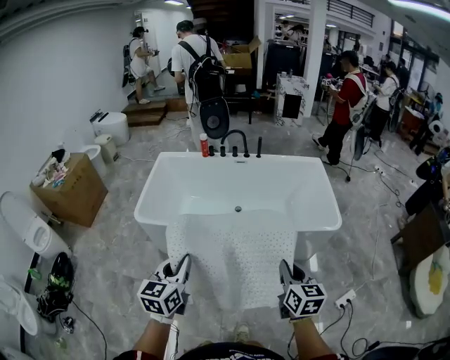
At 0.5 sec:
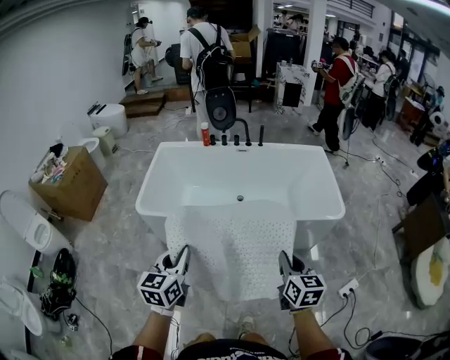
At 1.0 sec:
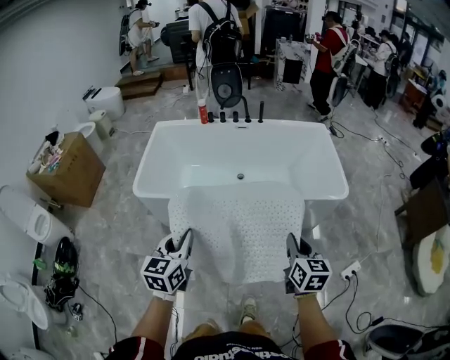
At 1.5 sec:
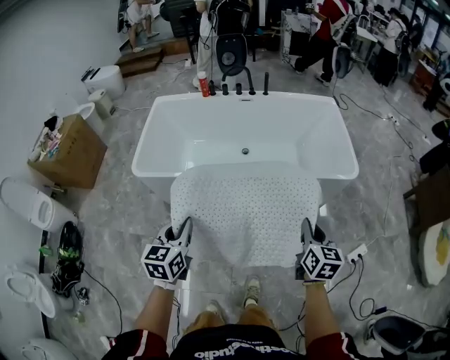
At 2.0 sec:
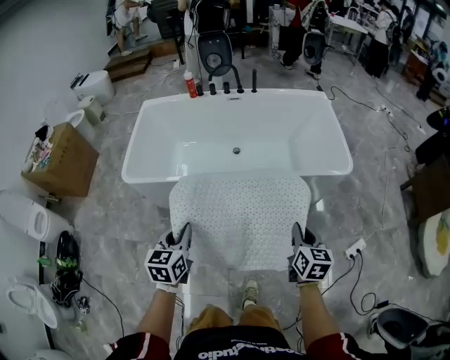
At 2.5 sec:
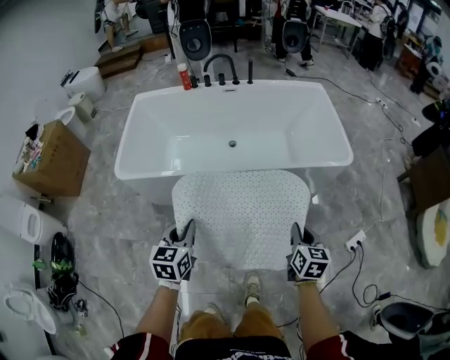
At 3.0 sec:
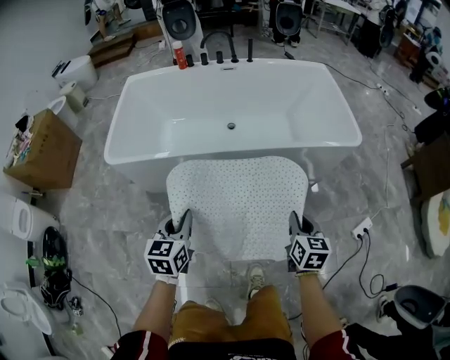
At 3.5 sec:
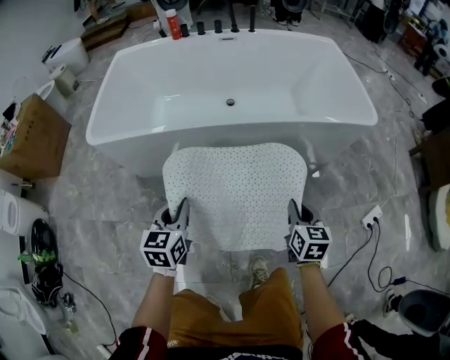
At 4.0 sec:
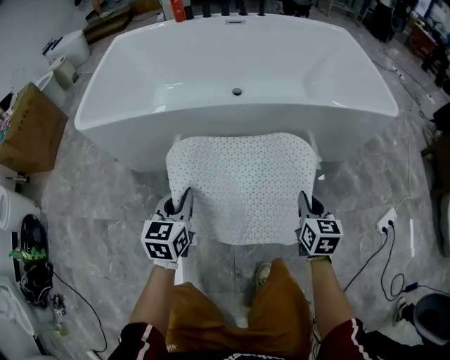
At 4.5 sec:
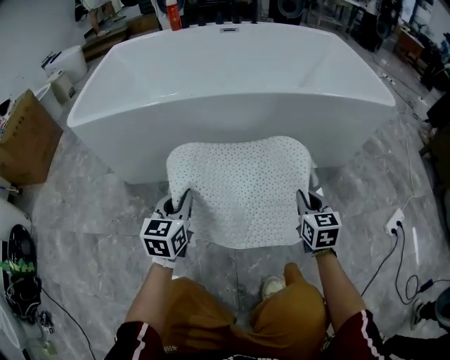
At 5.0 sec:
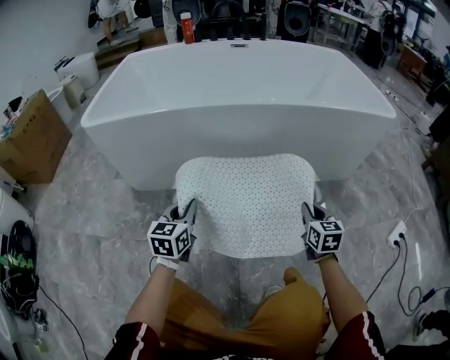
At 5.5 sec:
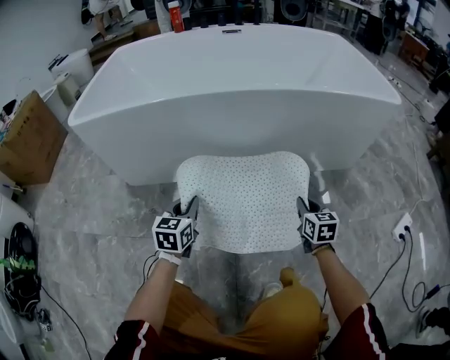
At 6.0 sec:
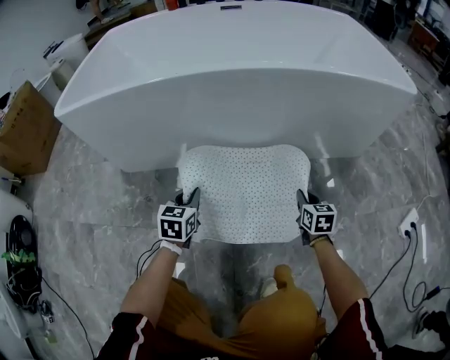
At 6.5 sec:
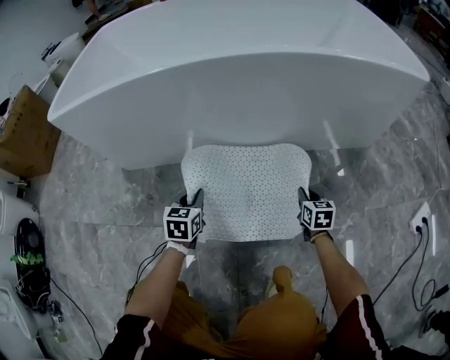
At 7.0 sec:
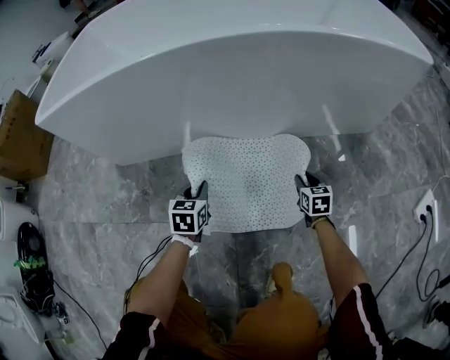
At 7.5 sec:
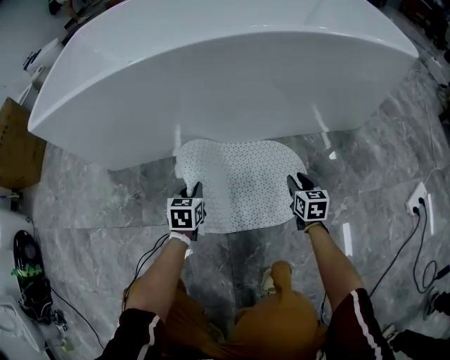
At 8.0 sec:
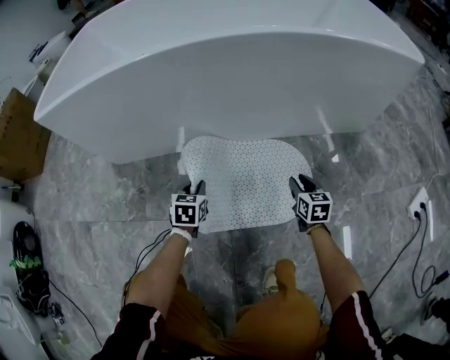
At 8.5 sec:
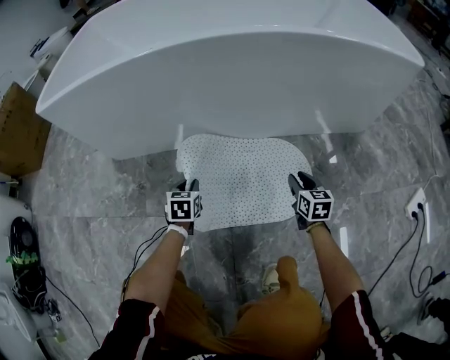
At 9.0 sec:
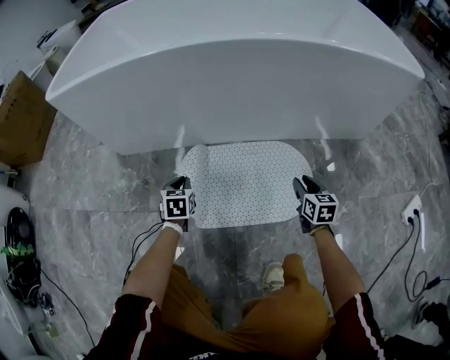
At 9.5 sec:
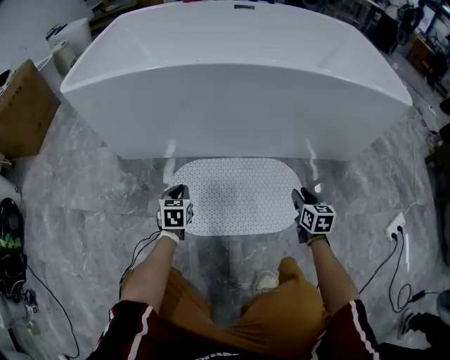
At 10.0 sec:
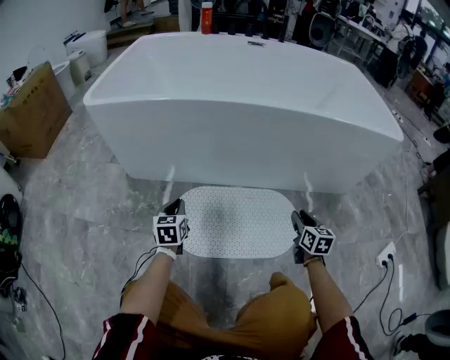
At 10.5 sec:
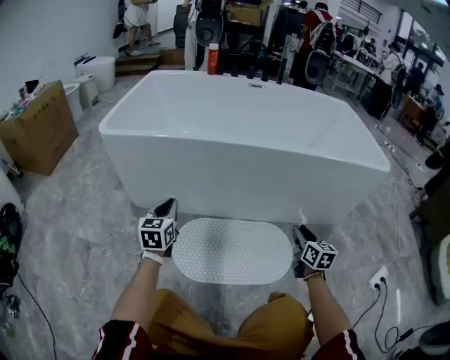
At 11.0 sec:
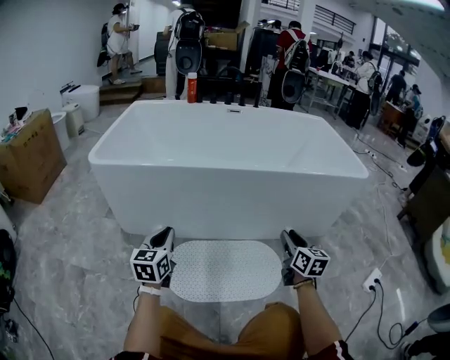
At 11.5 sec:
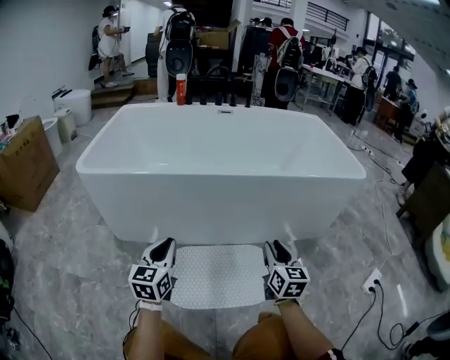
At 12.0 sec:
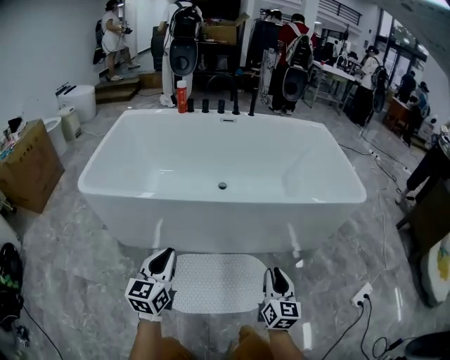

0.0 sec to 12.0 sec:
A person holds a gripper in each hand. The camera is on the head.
0.0 sec to 2.0 sec: Both grippers move downward, about 15 cm.
2.0 sec to 4.0 sec: Both grippers travel together downward, approximately 40 cm.
4.0 sec to 6.0 sec: Both grippers move downward, roughly 25 cm.
6.0 sec to 8.0 sec: The two grippers go approximately 10 cm downward. The right gripper opens.
8.0 sec to 10.0 sec: The left gripper shifts approximately 20 cm to the left and upward, and turns by about 20 degrees. The right gripper is displaced upward by about 15 cm.
10.0 sec to 12.0 sec: Both grippers travel together upward, some 30 cm. The right gripper swivels approximately 20 degrees. Meanwhile the left gripper turns by some 30 degrees.

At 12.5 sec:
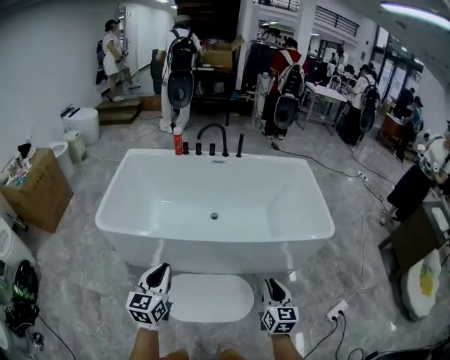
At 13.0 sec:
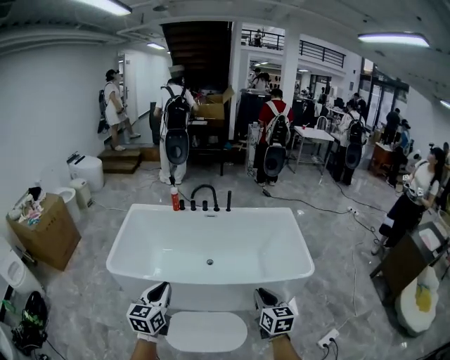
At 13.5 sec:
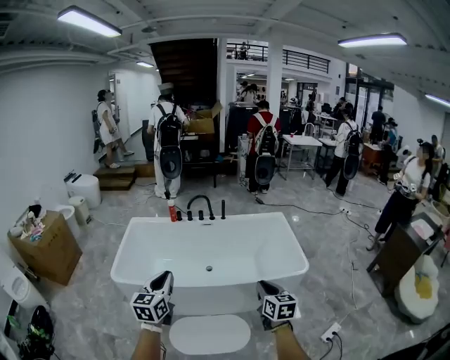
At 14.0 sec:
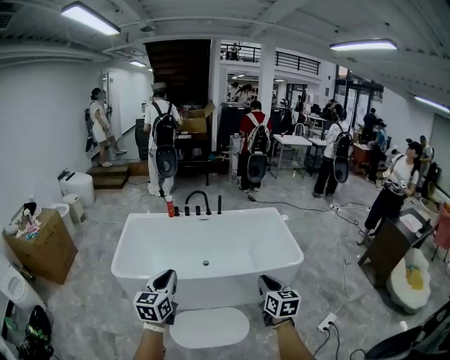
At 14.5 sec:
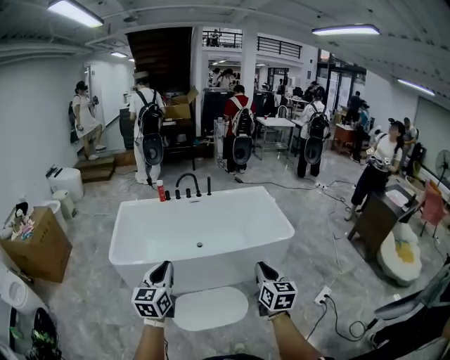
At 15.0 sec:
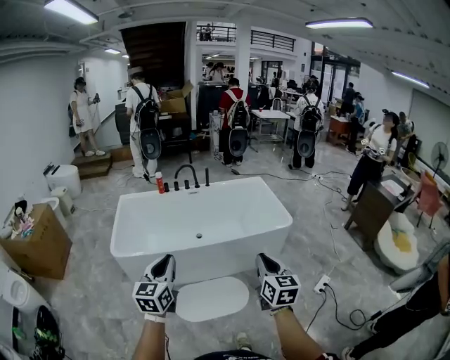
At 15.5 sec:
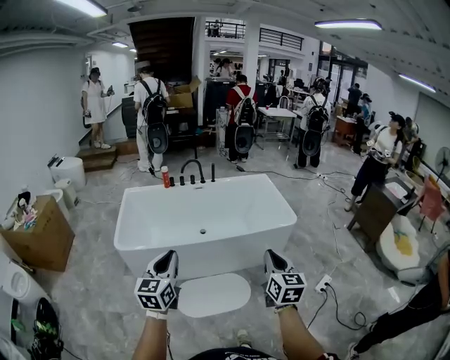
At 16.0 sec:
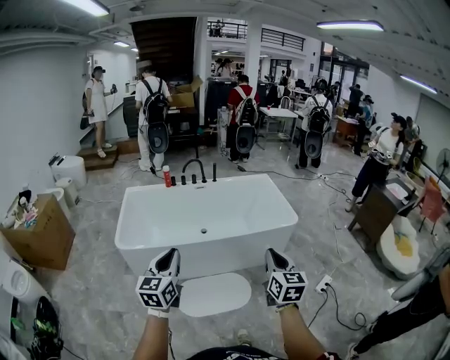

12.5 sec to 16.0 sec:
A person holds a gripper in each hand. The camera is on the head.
12.5 sec to 14.5 sec: The two grippers go about 35 cm upward and backward.
14.5 sec to 16.0 sec: The left gripper ends up about 5 cm from where it was. Meanwhile the right gripper moves backward, roughly 5 cm.

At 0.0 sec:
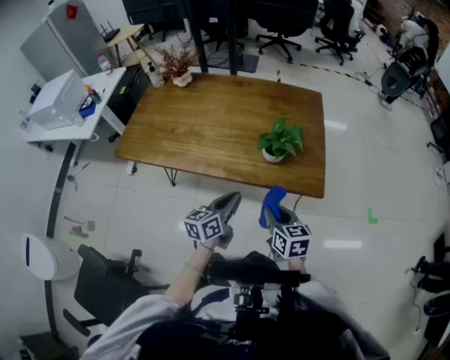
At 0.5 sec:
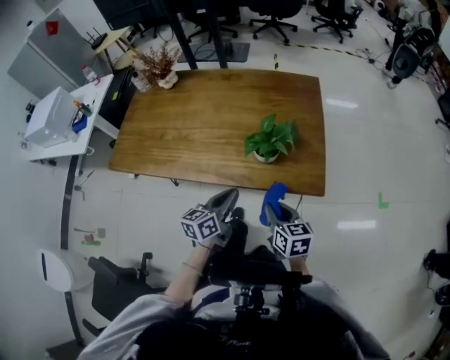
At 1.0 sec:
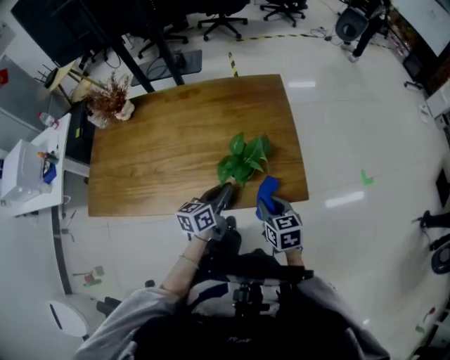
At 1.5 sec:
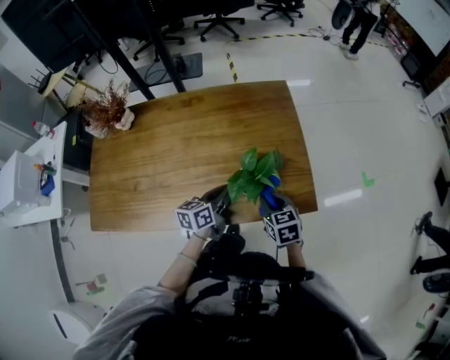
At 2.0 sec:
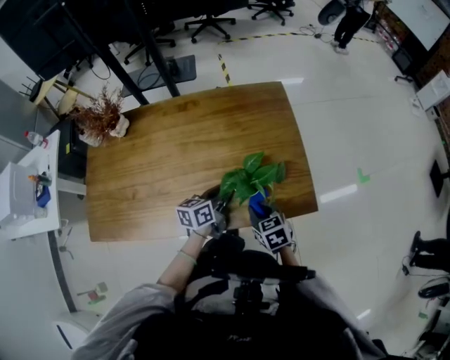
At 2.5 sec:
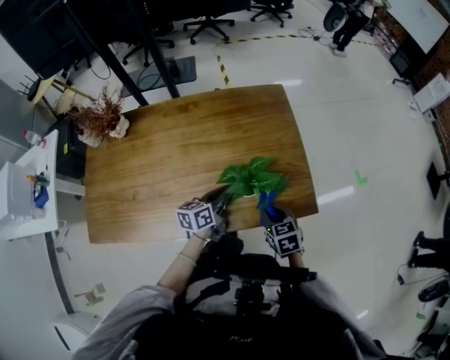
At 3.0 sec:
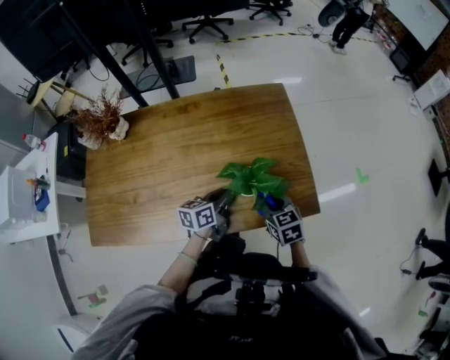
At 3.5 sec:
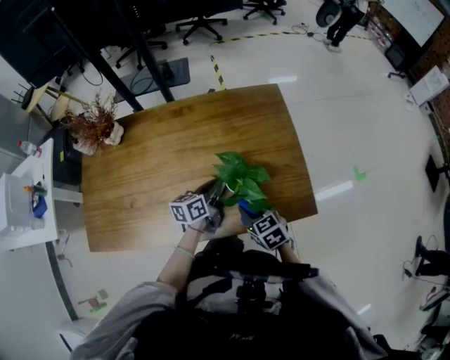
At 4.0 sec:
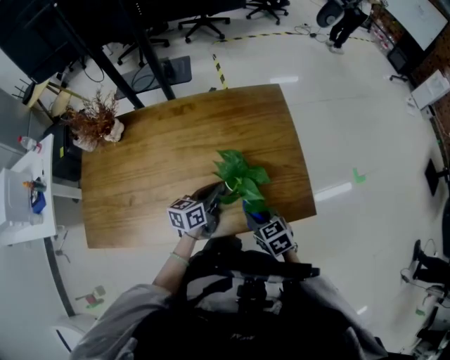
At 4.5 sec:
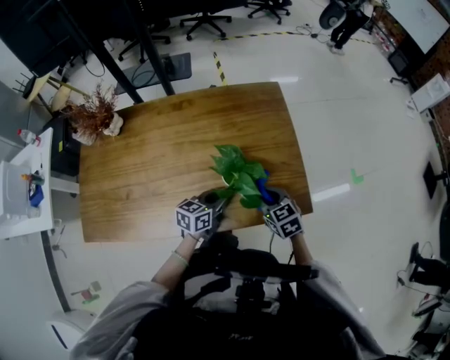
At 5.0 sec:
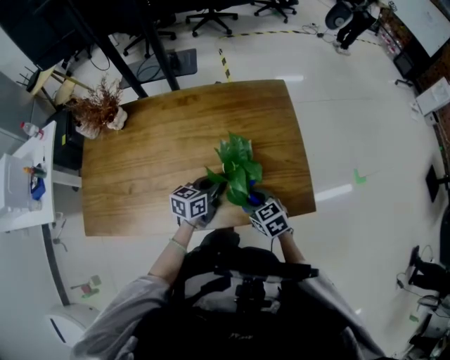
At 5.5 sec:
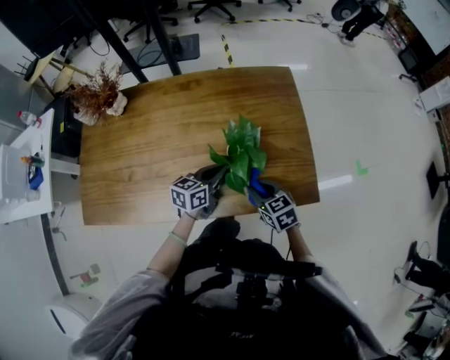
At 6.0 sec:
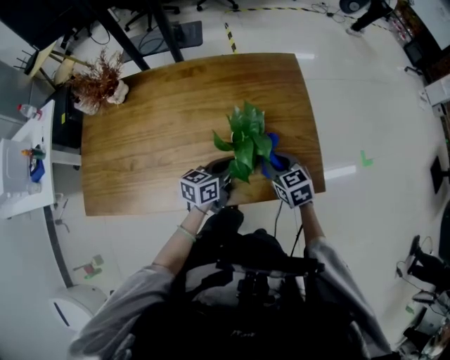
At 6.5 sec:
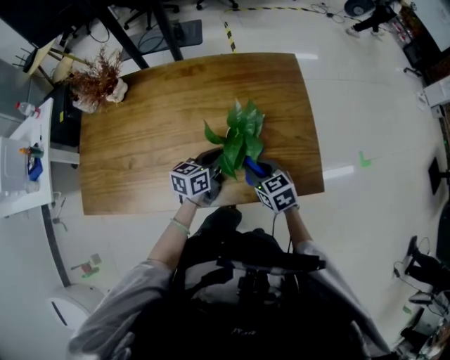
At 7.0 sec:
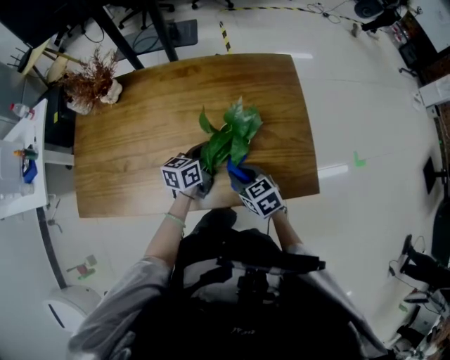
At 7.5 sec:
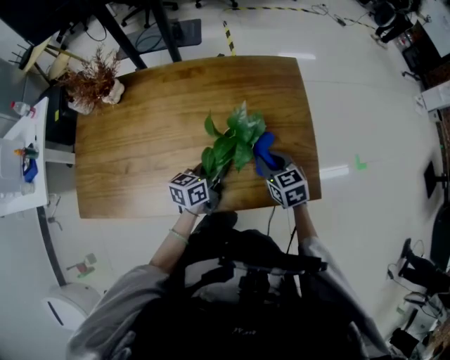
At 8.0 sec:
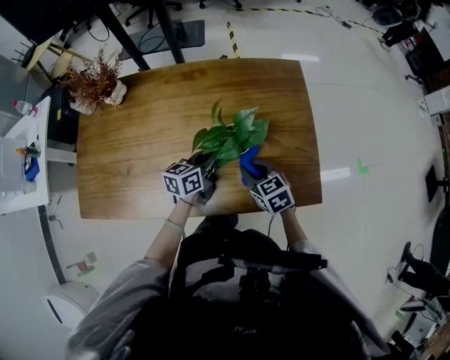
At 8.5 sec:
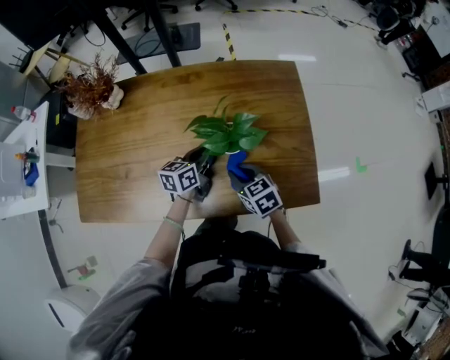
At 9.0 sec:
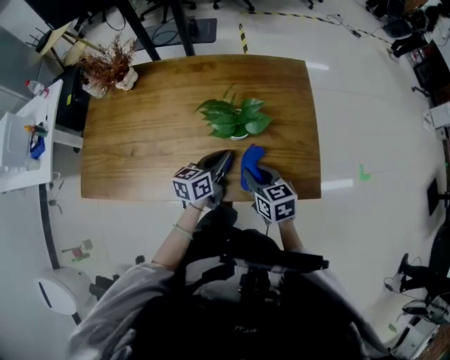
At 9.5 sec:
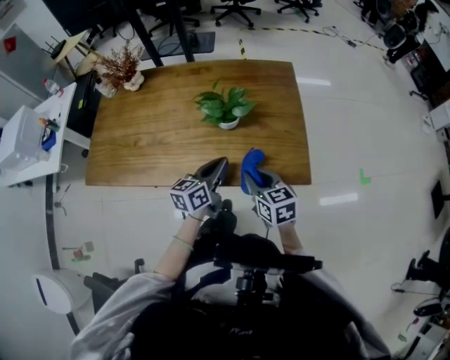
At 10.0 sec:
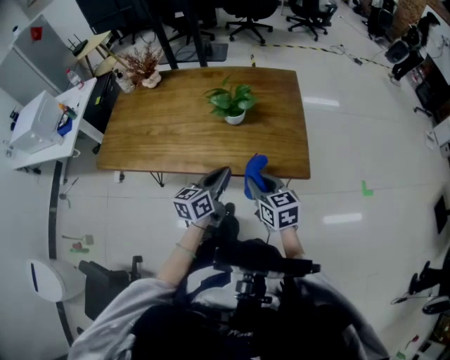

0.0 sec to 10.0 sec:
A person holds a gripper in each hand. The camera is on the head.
0.0 sec to 2.0 sec: Both grippers move forward, some 20 cm. The left gripper rotates approximately 20 degrees.
2.0 sec to 4.0 sec: The right gripper goes to the right and returns, roughly 5 cm each way.
4.0 sec to 6.0 sec: The right gripper moves forward, approximately 10 cm.
6.0 sec to 8.0 sec: The right gripper moves left and right over some 10 cm, changing direction 2 times. The left gripper swings forward and backward, roughly 5 cm each way, with 2 reversals.
8.0 sec to 10.0 sec: The two grippers go approximately 20 cm backward.

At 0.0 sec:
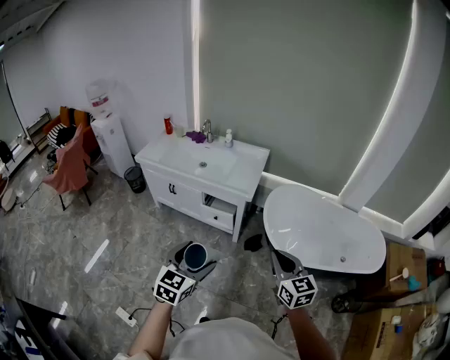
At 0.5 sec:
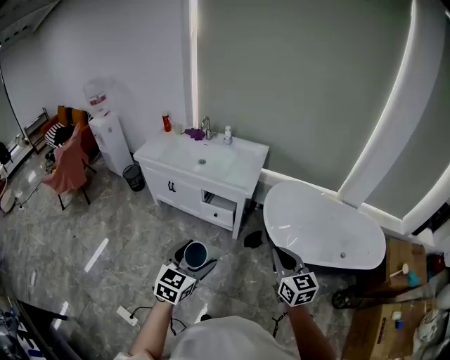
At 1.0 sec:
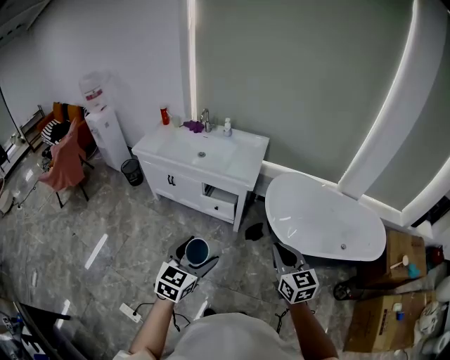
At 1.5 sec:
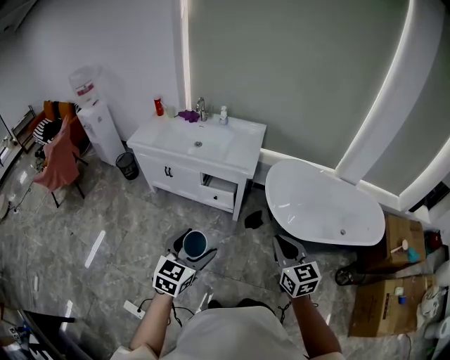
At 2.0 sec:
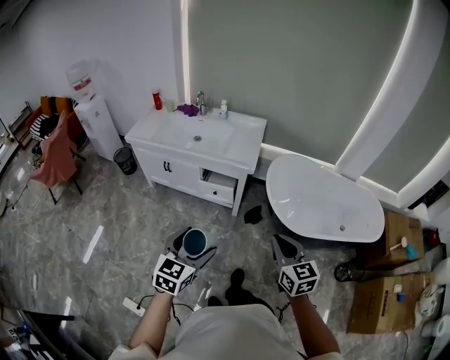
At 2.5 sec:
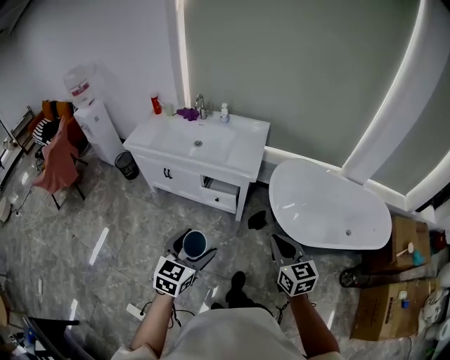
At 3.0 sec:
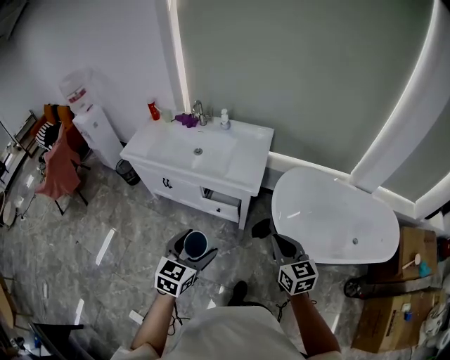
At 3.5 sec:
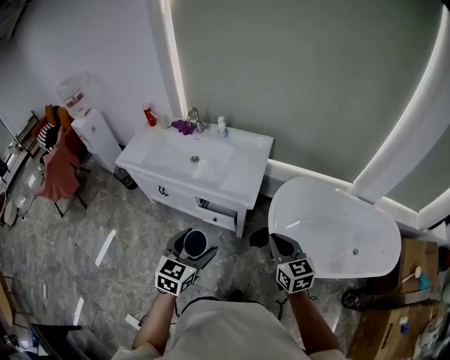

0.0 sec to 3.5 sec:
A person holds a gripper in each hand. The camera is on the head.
0.0 sec to 2.0 sec: Both grippers move to the left, some 5 cm.
2.0 sec to 3.5 sec: Both grippers travel together forward, some 30 cm.
